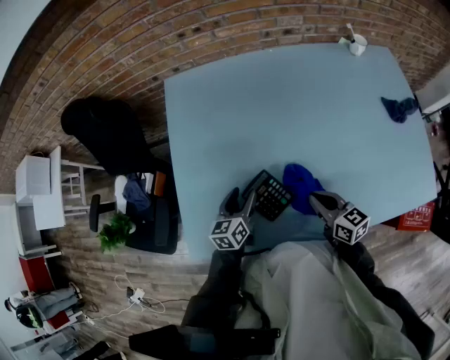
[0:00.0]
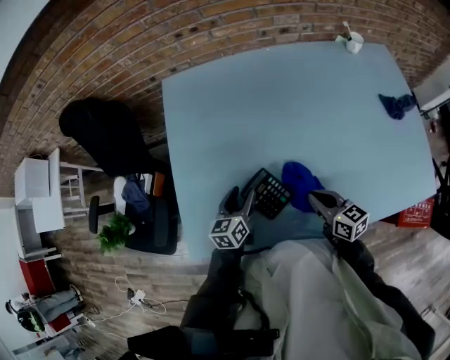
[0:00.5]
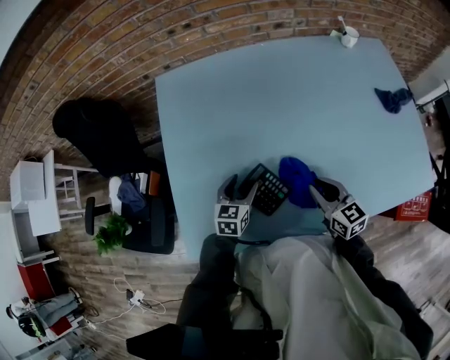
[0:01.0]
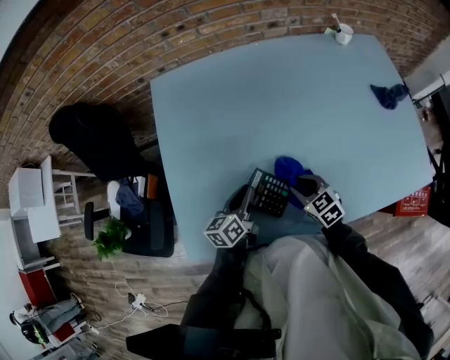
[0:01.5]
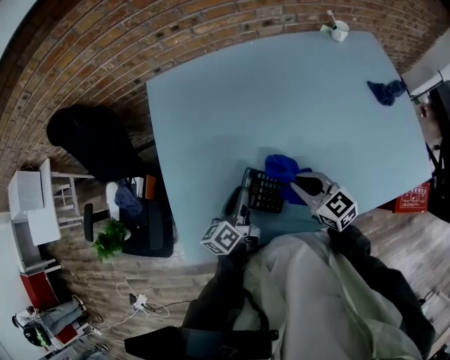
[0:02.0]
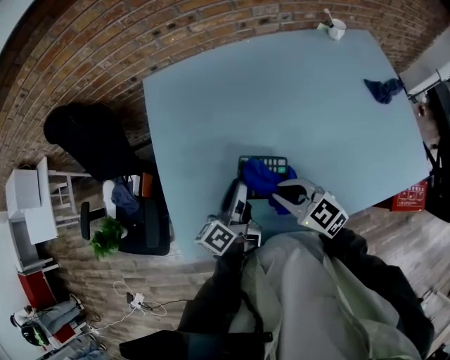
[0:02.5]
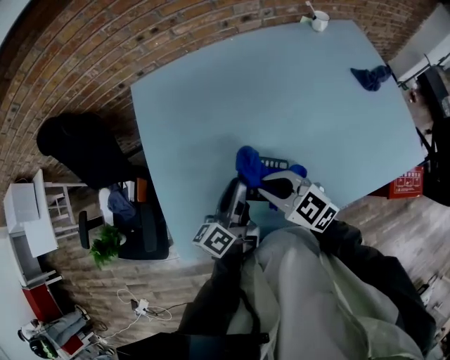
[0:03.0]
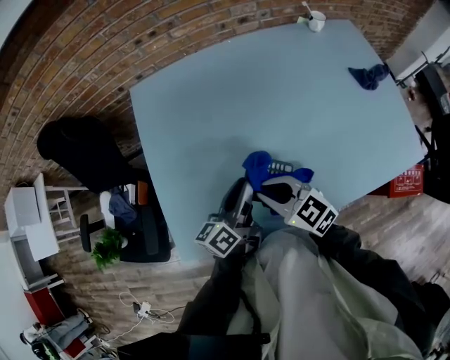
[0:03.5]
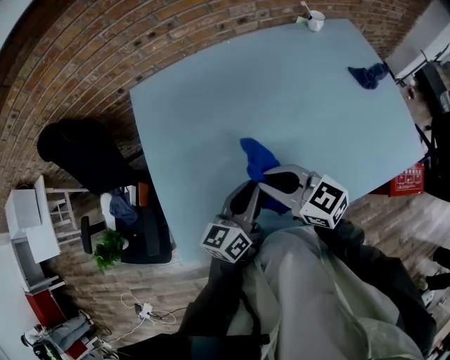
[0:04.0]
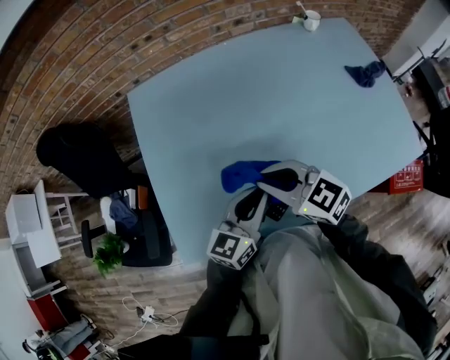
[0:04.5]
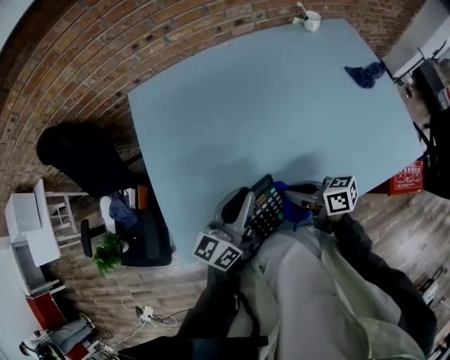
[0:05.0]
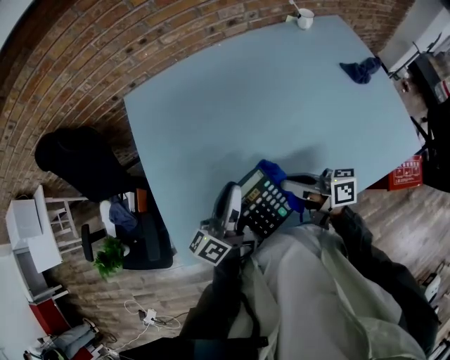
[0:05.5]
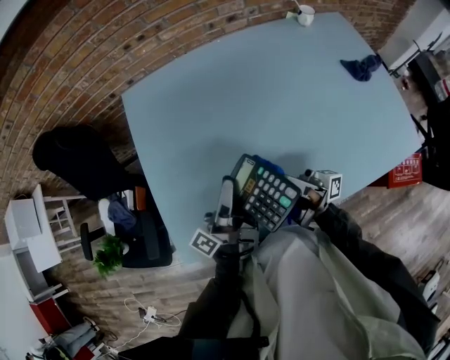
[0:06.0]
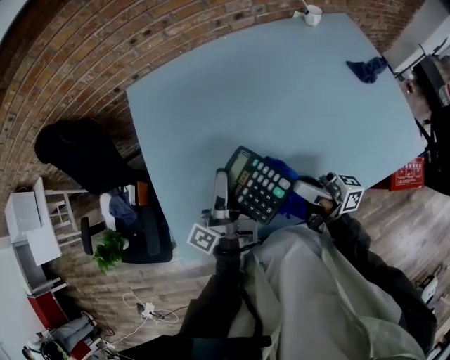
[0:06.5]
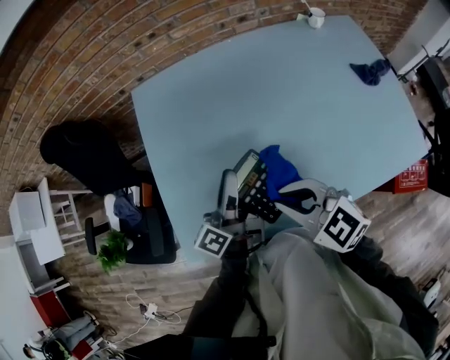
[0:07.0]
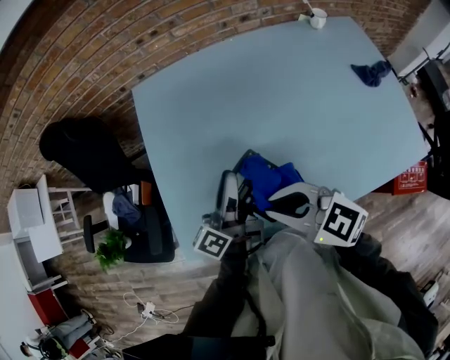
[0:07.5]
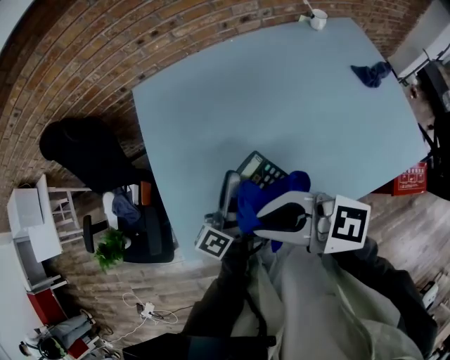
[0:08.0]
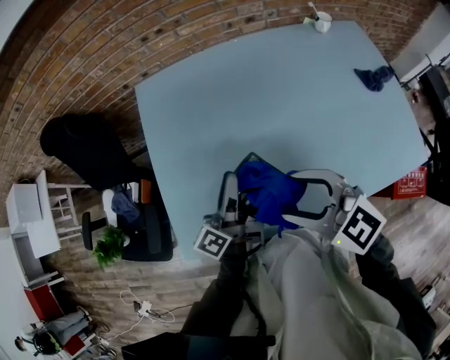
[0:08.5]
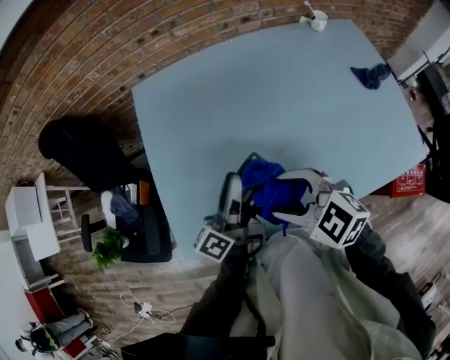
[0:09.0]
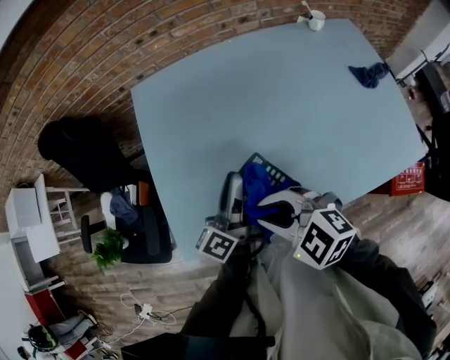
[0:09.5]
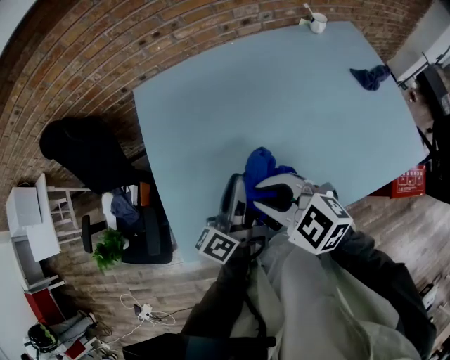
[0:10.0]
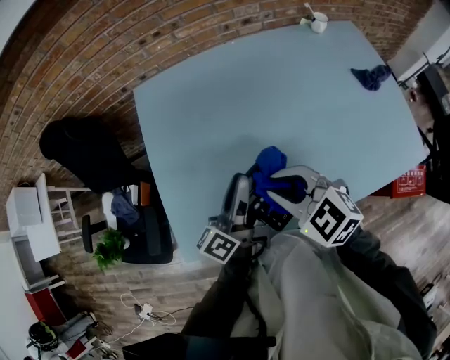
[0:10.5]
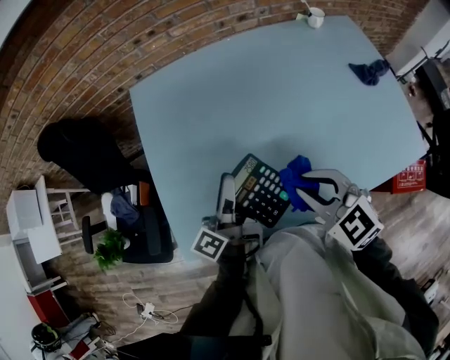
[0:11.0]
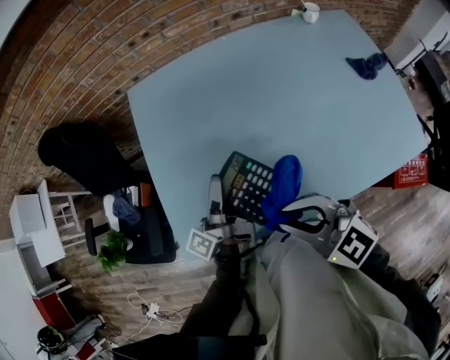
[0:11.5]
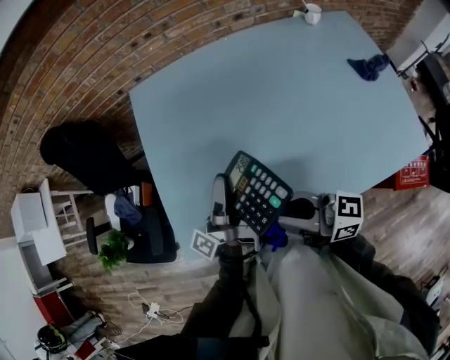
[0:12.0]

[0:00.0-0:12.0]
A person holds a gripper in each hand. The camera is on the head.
0:00.0 to 0:02.0: The right gripper goes downward and returns, approximately 5 cm each way. Meanwhile the left gripper rotates approximately 20 degrees, and closes its fingers.
0:02.0 to 0:04.0: The left gripper heads upward and to the right, covering roughly 15 cm, and rotates approximately 30 degrees; the right gripper shifts about 10 cm upward and to the left.
0:04.0 to 0:06.0: The left gripper moves approximately 5 cm, and tips its fingers upward by roughly 30 degrees; the right gripper travels to the right by approximately 5 cm, travels downward and back again, approximately 10 cm each way, and tips its fingers upward by some 60 degrees.
0:06.0 to 0:08.0: The left gripper rotates roughly 20 degrees; the right gripper is displaced to the left and upward by some 15 cm, and tilts its fingers roughly 40 degrees downward.
0:08.0 to 0:10.0: The right gripper is displaced downward by approximately 10 cm, tilts its fingers roughly 30 degrees downward, and opens and closes again.
0:10.0 to 0:12.0: The right gripper goes approximately 5 cm backward, moves roughly 10 cm to the right and comes back, and tips its fingers upward by roughly 50 degrees, while the left gripper rotates roughly 40 degrees.

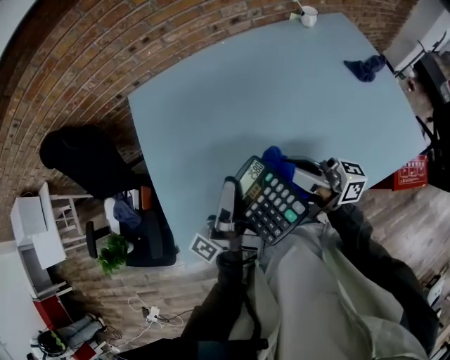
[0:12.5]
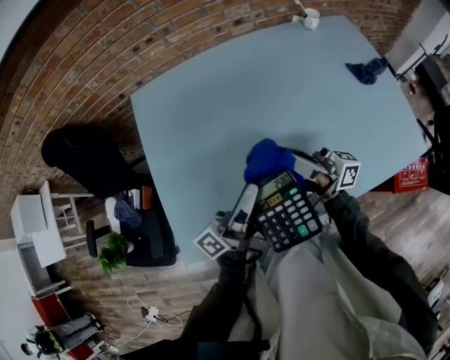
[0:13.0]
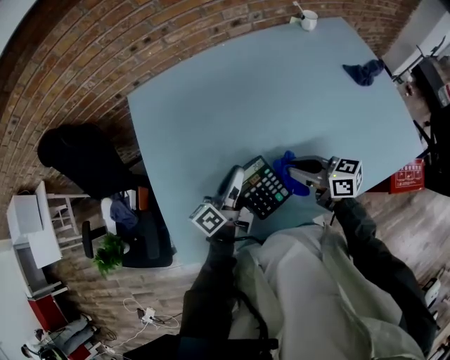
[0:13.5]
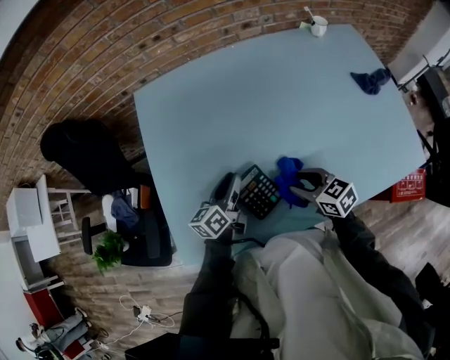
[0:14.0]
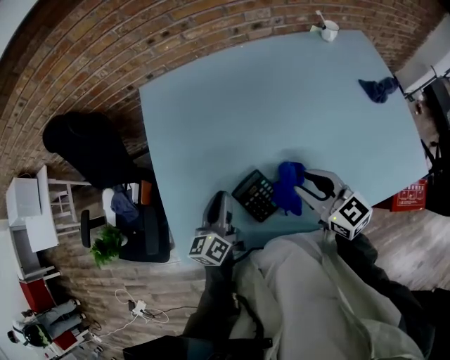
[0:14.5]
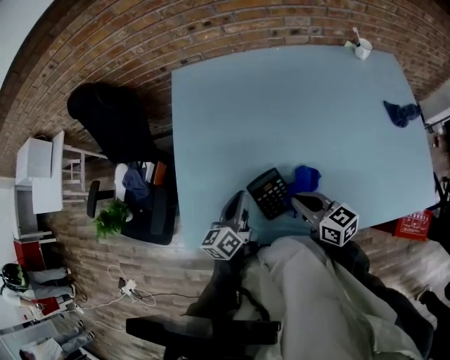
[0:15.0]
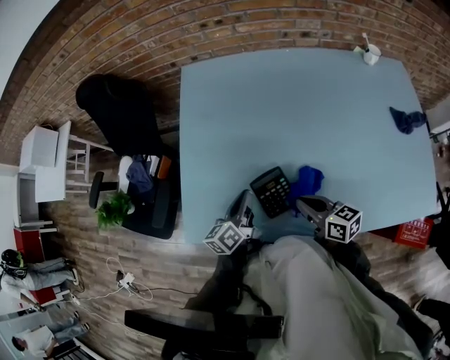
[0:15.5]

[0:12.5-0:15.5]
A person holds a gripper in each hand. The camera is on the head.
0:12.5 to 0:14.0: The two grippers go approximately 20 cm downward. The right gripper tips its fingers downward by about 60 degrees, and opens up; the left gripper angles its fingers downward, by approximately 40 degrees.
0:14.0 to 0:15.5: The left gripper heads to the left and backward, covering approximately 10 cm, and turns by roughly 20 degrees. Meanwhile the right gripper goes about 5 cm to the left, reaches about 10 cm upward, then returns, swivels roughly 20 degrees, and closes.

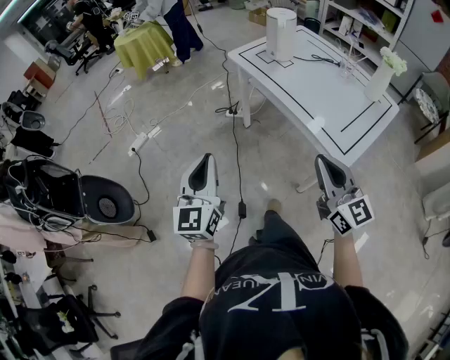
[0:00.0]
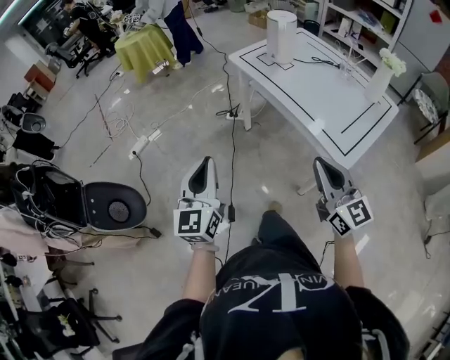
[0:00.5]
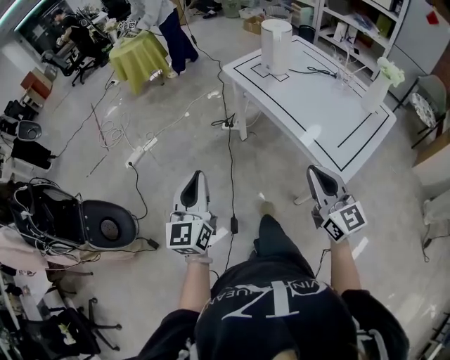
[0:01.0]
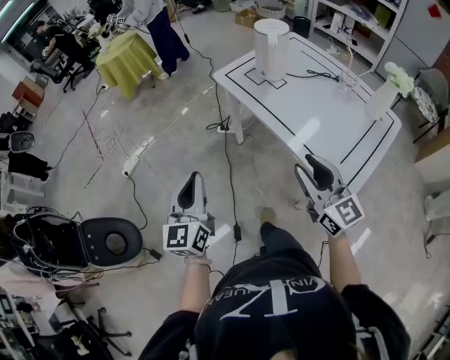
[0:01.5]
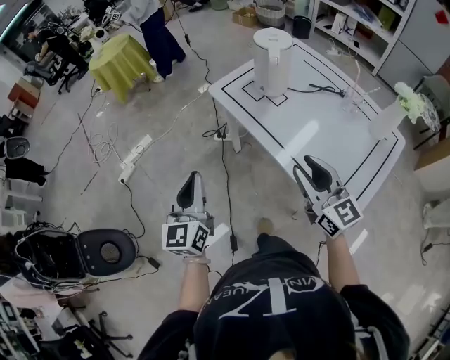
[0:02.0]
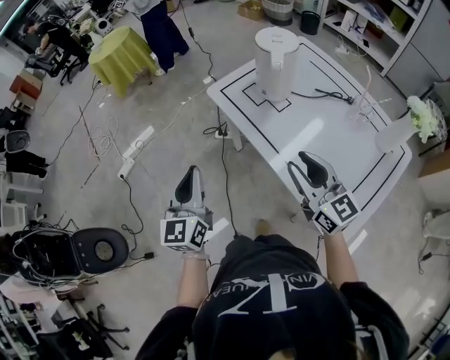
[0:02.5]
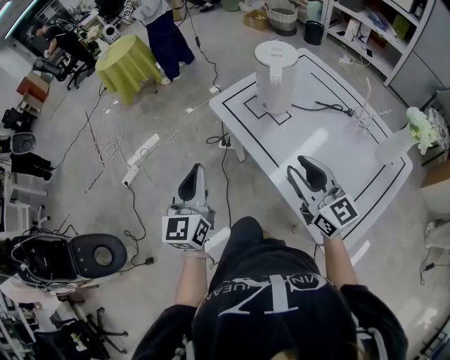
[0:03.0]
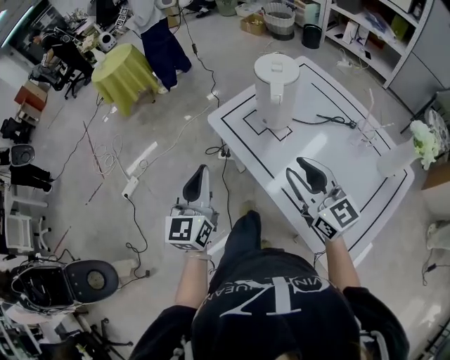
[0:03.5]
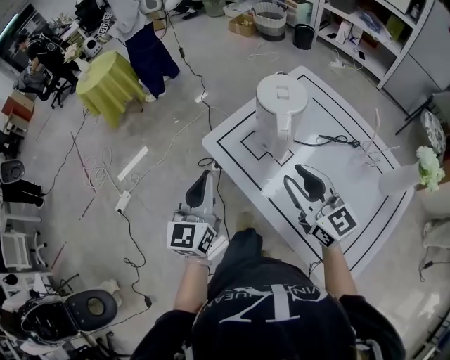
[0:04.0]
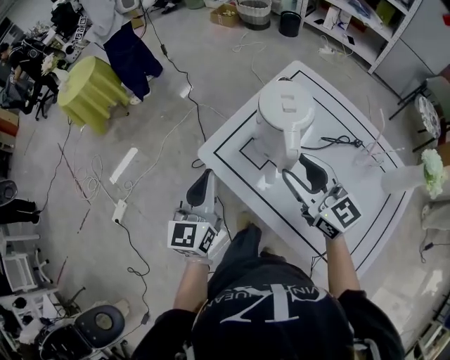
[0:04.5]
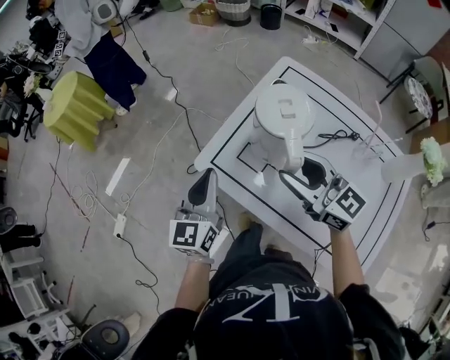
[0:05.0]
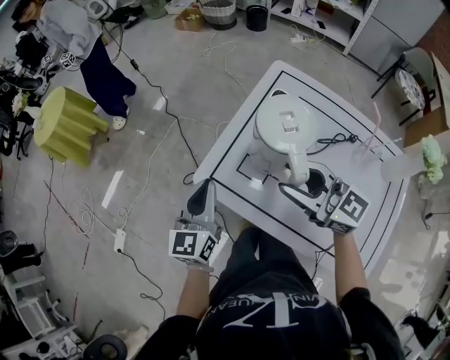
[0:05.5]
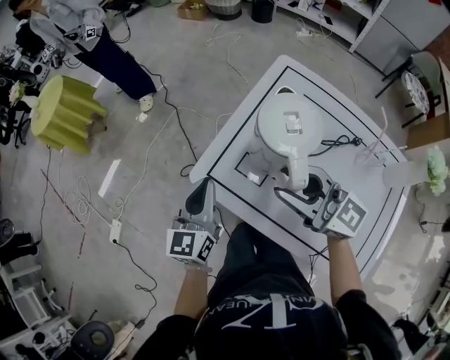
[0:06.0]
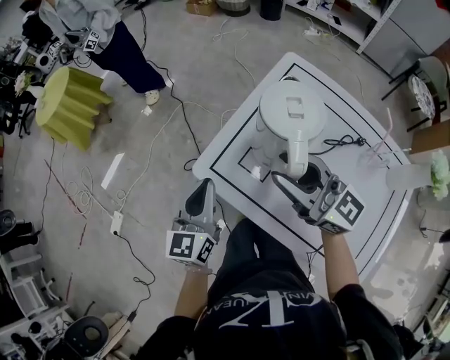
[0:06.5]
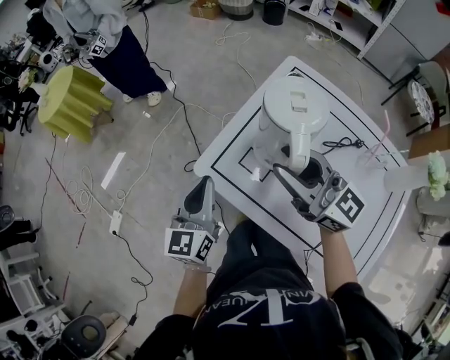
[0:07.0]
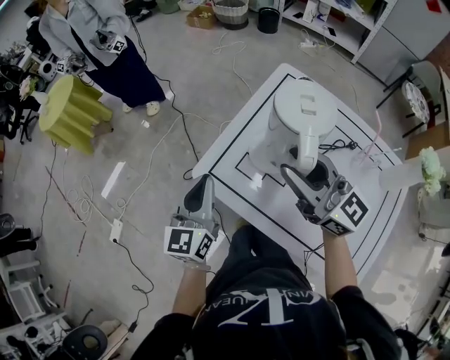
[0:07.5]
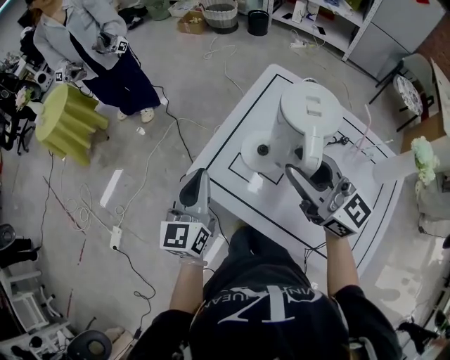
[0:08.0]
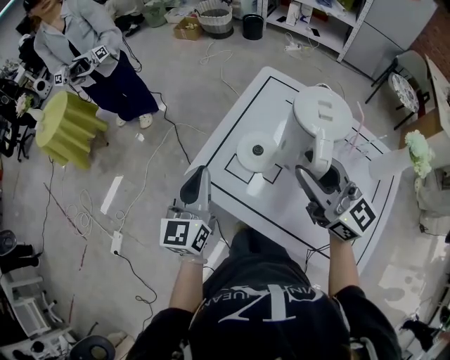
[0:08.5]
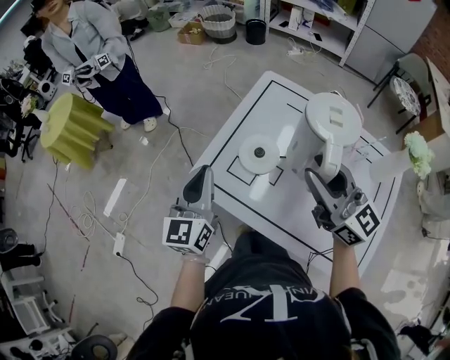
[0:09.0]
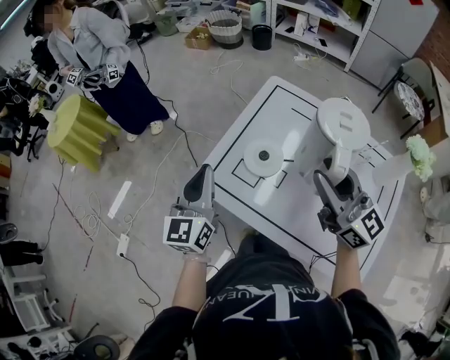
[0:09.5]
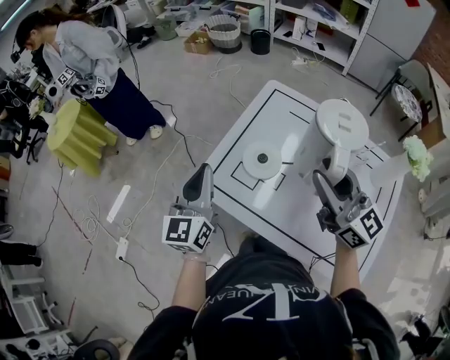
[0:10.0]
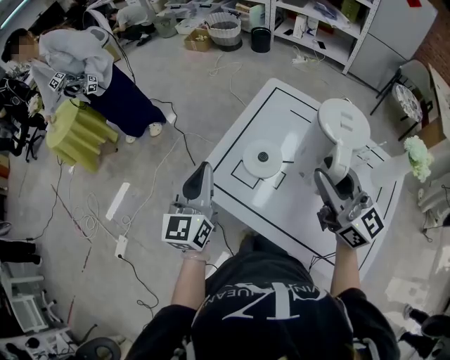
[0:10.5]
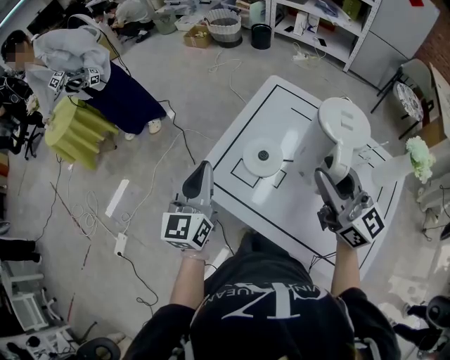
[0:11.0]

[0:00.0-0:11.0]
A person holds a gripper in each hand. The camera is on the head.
0:00.0 to 0:02.0: The grippers both shift forward by approximately 25 cm. The right gripper opens its fingers.
0:02.0 to 0:03.5: The left gripper is displaced forward and to the right by roughly 15 cm. Meanwhile the right gripper travels forward by roughly 15 cm.
0:03.5 to 0:05.5: Both grippers move forward, approximately 20 cm. The left gripper turns by roughly 20 degrees.
0:05.5 to 0:07.5: The right gripper moves upward, some 5 cm.
0:07.5 to 0:09.0: The right gripper heads to the right and backward, covering approximately 10 cm. The left gripper shifts by roughly 5 cm.
0:09.0 to 0:11.0: The grippers make only small movements.
